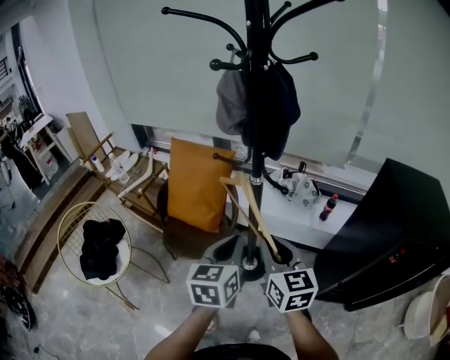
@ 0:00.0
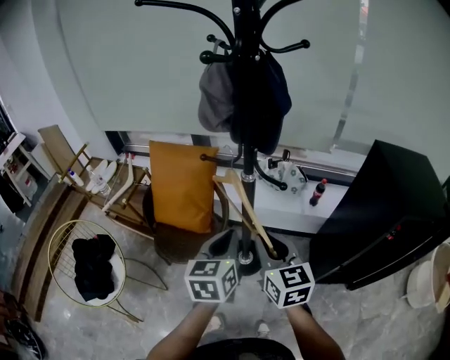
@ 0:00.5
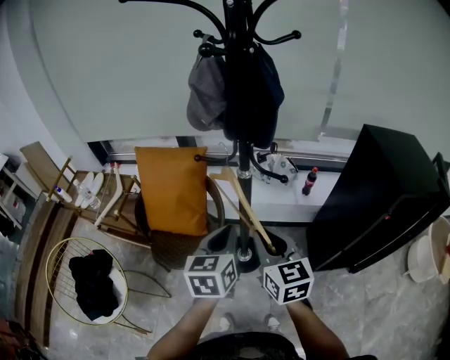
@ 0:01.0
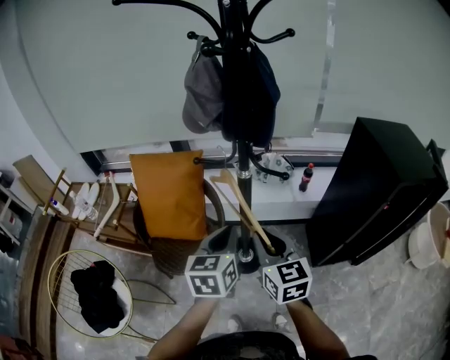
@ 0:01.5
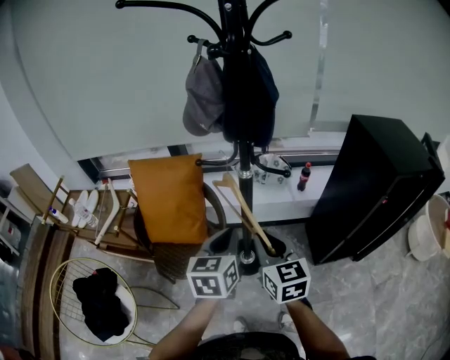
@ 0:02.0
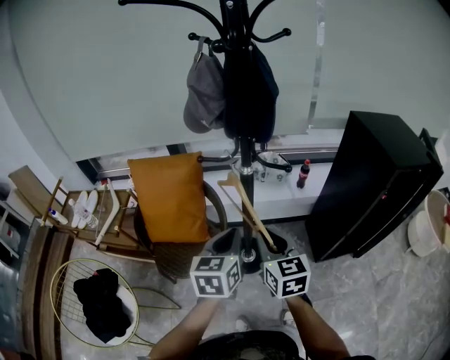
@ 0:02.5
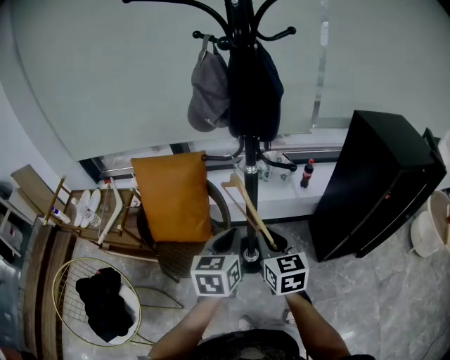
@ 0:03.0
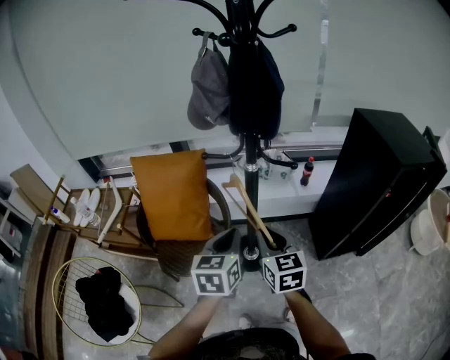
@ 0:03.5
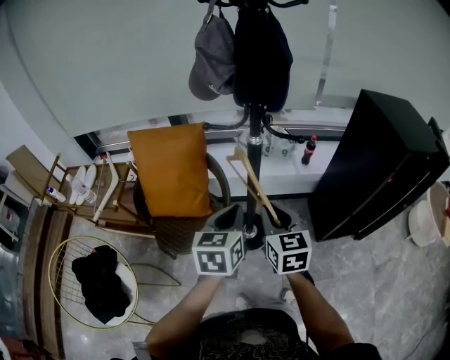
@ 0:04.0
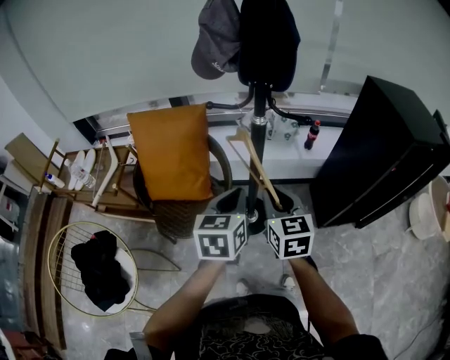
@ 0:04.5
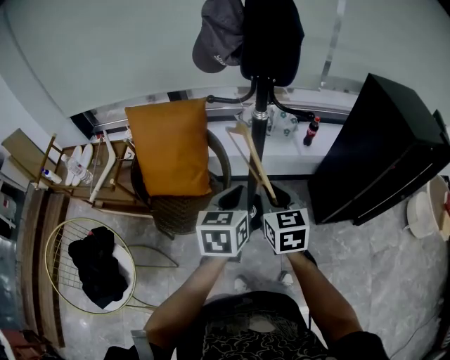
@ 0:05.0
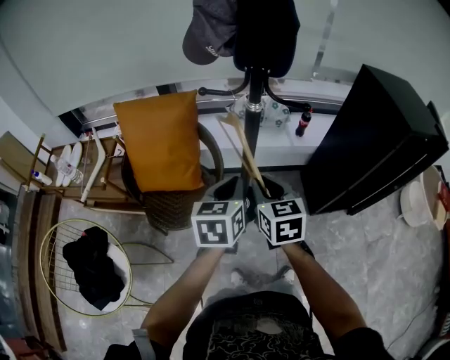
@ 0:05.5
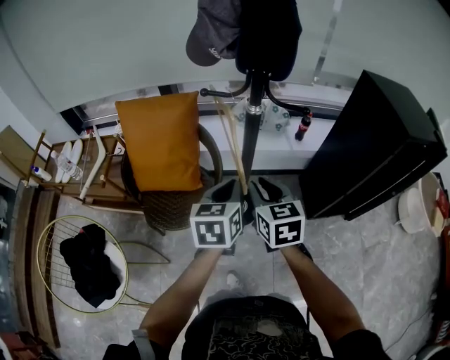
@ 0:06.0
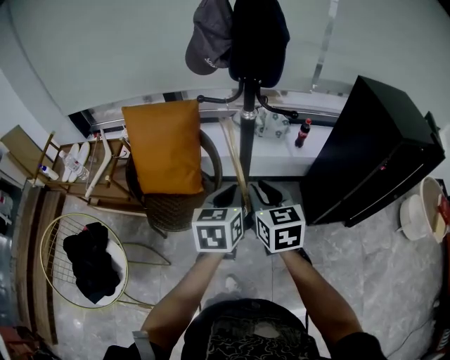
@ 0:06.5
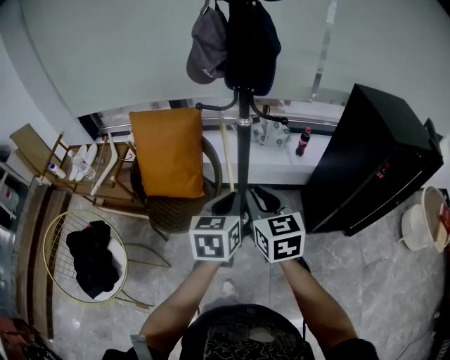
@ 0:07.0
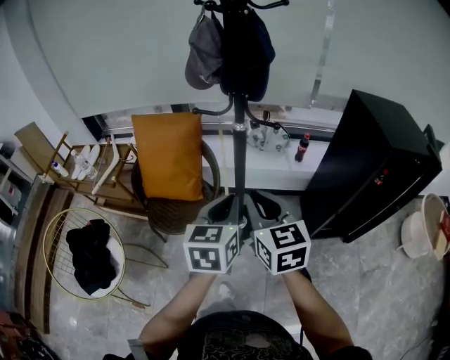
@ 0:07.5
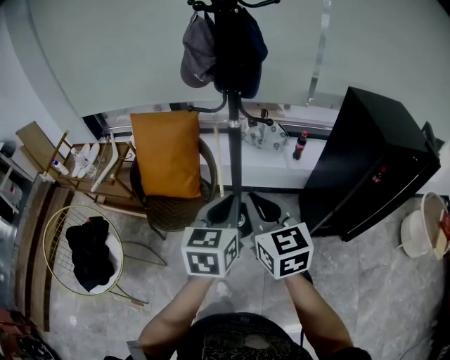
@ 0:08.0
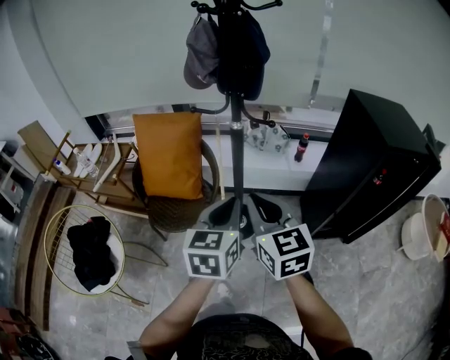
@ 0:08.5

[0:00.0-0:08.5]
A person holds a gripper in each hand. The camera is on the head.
0:00.0 to 0:02.0: The left gripper moves to the left and forward, about 10 cm. The right gripper is displaced to the left by about 10 cm.
0:02.0 to 0:04.0: The grippers move only a little.
0:04.0 to 0:06.5: The grippers make only small movements.
0:06.5 to 0:08.5: The right gripper goes approximately 15 cm upward and backward, while the left gripper moves backward, upward and to the right, approximately 15 cm.

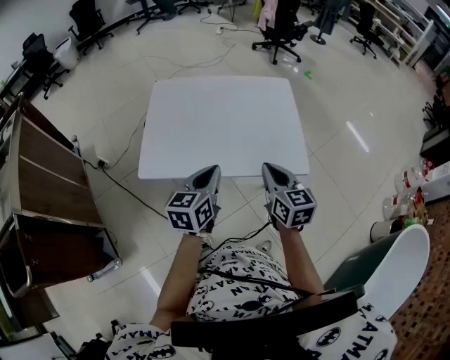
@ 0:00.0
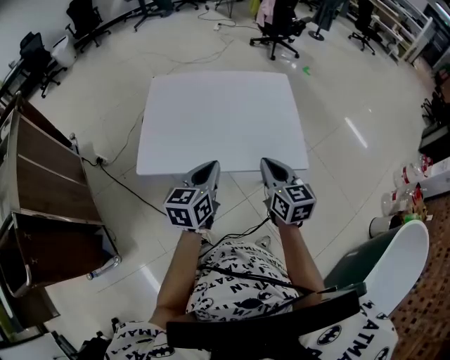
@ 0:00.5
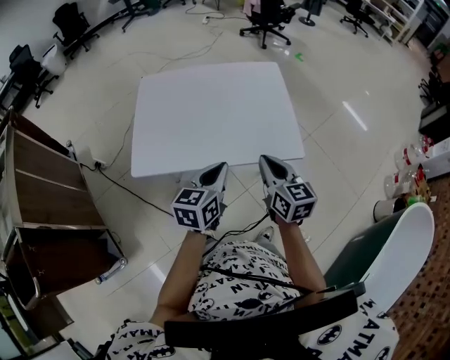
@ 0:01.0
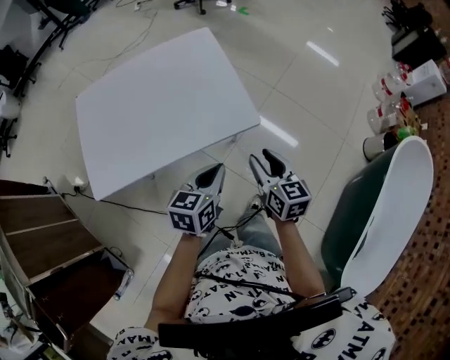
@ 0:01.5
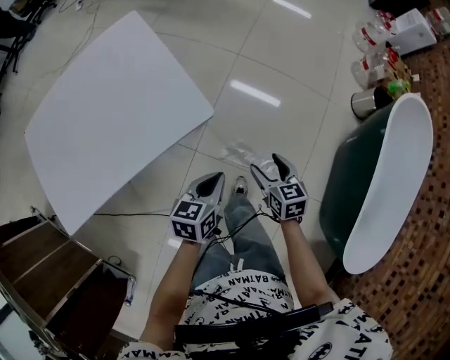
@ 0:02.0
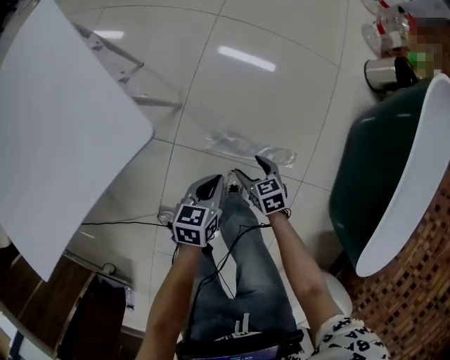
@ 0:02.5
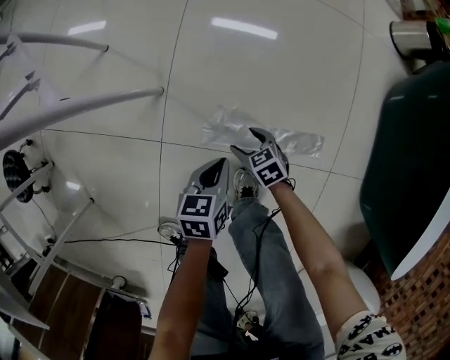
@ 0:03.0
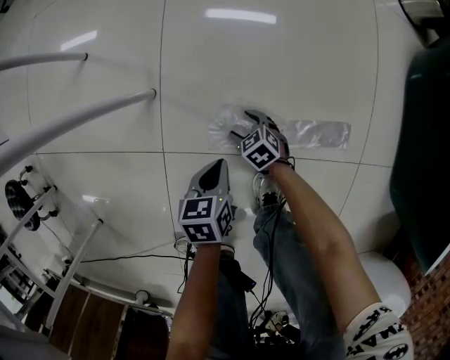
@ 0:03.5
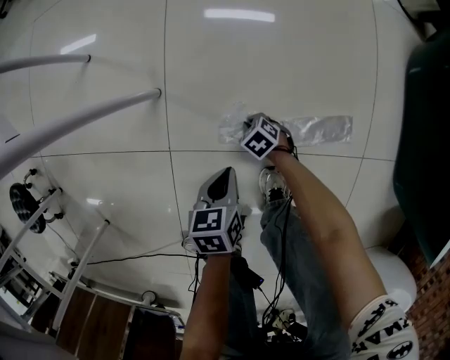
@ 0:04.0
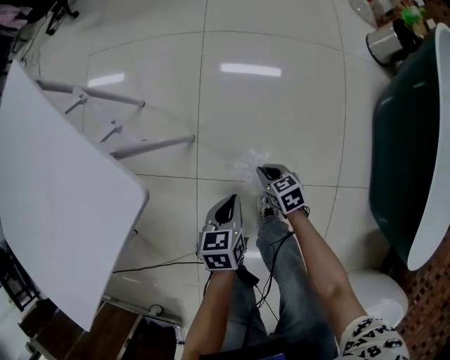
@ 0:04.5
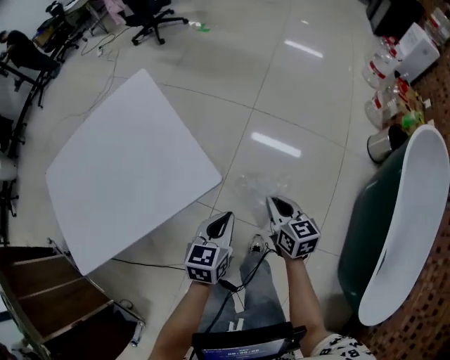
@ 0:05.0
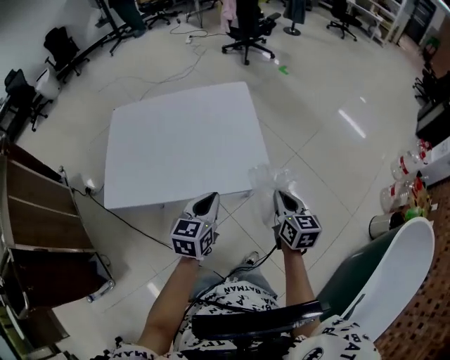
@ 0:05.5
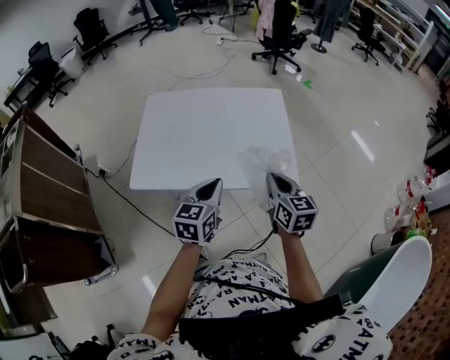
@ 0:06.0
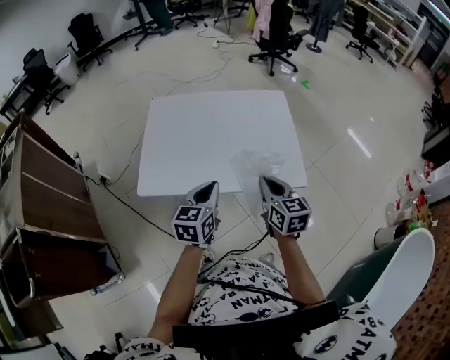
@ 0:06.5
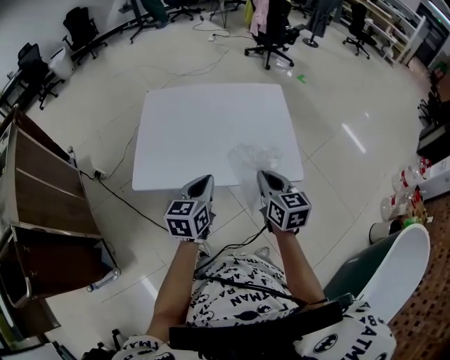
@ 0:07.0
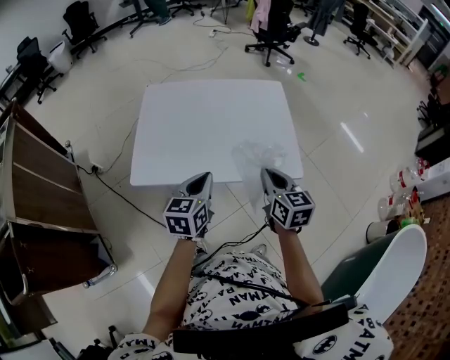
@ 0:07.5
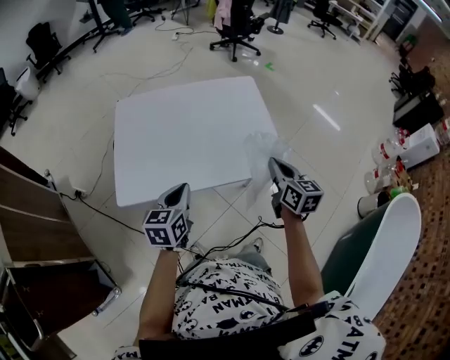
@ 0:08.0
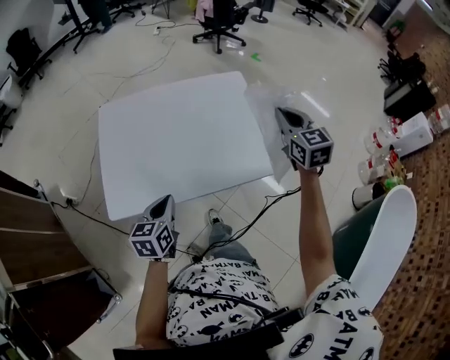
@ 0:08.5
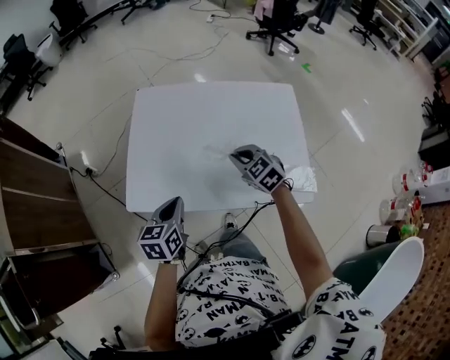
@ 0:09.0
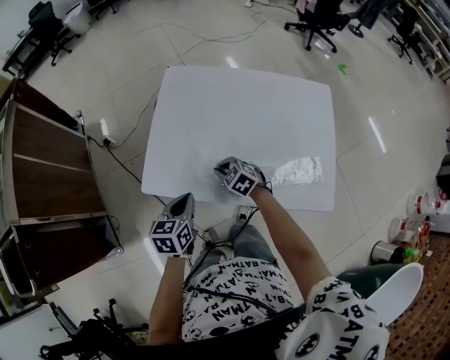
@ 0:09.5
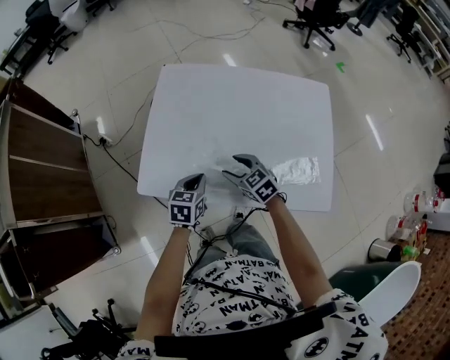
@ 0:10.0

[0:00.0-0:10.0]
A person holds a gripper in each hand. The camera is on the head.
0:00.0 to 0:02.0: The left gripper shifts by about 40 cm, and swivels roughly 40 degrees, while the right gripper changes place by approximately 40 cm, changes its angle by about 40 degrees, and opens up.
0:02.0 to 0:04.0: Both grippers travel together downward, approximately 60 cm. The right gripper points its fingers some 30 degrees further downward, and closes its fingers. Meanwhile the left gripper changes its angle by some 20 degrees.
0:04.0 to 0:06.0: Both grippers travel together upward, roughly 90 cm. The left gripper tilts its fingers roughly 30 degrees upward. Meanwhile the right gripper angles its fingers upward, by about 50 degrees.
0:06.0 to 0:08.0: The left gripper shifts about 10 cm to the left; the right gripper reaches about 5 cm to the left, then returns.
0:08.0 to 0:10.0: The left gripper travels downward by roughly 15 cm, and rotates some 20 degrees, while the right gripper shifts by about 35 cm, swivels approximately 60 degrees, and opens up.

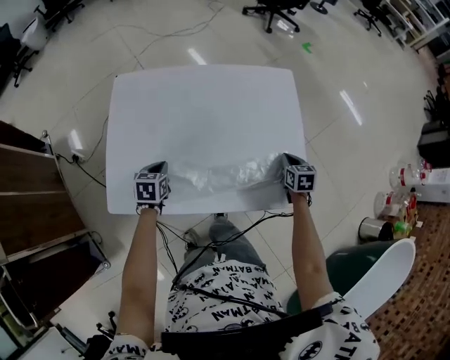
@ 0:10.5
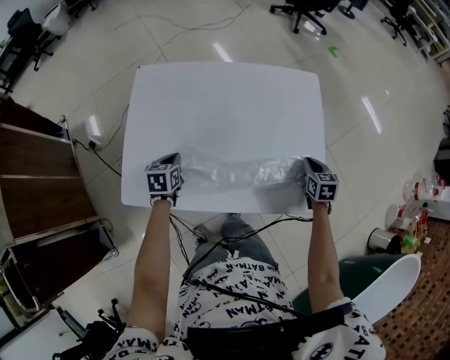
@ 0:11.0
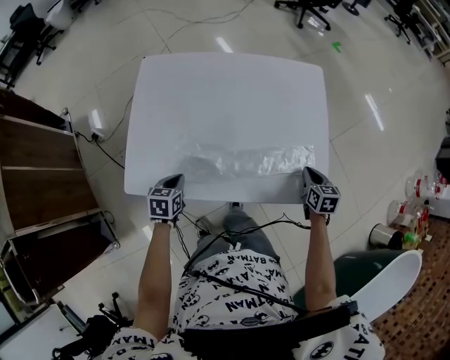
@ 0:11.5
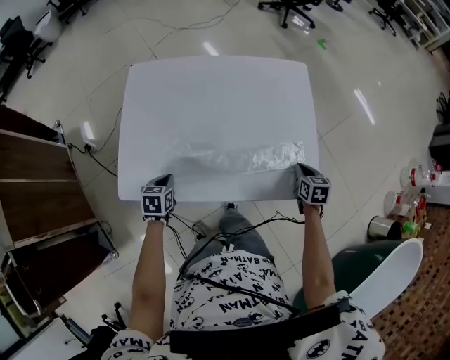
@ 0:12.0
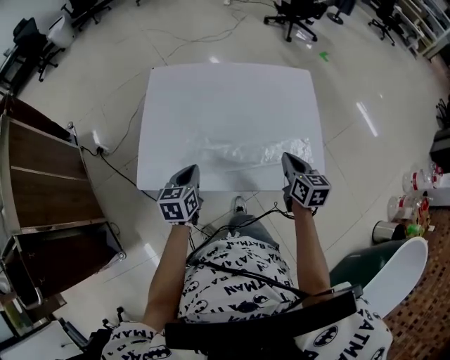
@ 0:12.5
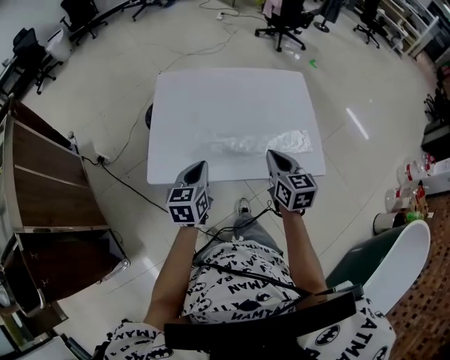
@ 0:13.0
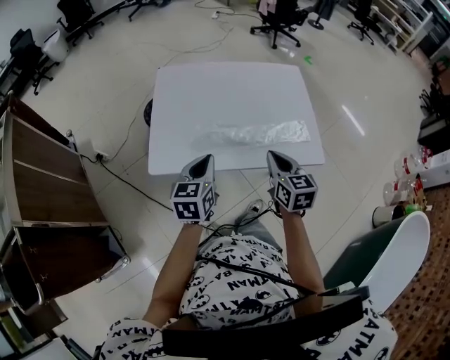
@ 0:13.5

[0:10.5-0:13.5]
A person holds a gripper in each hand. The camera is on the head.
0:10.5 to 0:12.0: Both grippers move backward, some 10 cm.
0:12.0 to 0:13.5: The left gripper travels upward by approximately 25 cm, and points its fingers roughly 30 degrees further upward, while the right gripper shifts about 35 cm to the left, upward and backward, and turns by roughly 30 degrees.

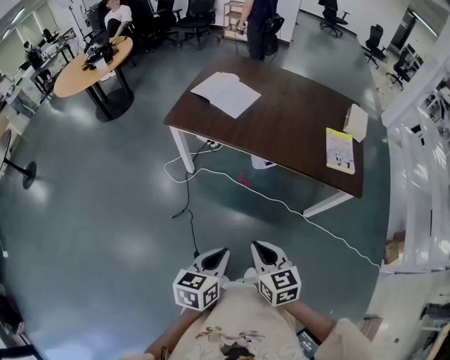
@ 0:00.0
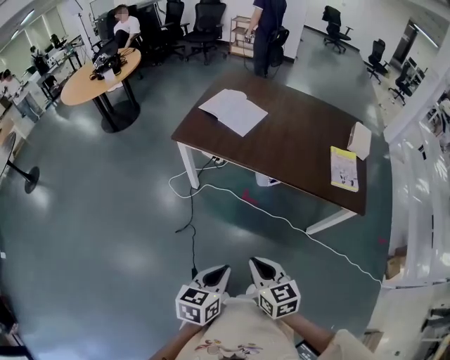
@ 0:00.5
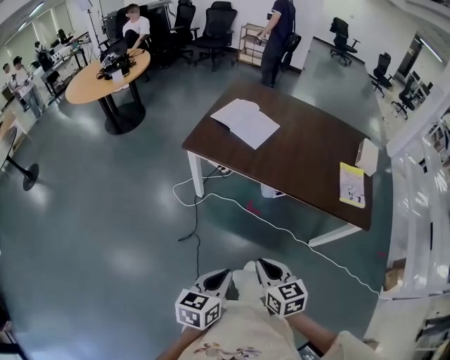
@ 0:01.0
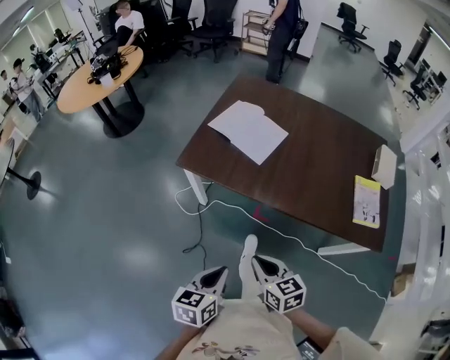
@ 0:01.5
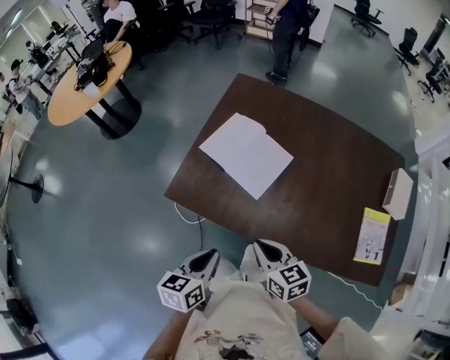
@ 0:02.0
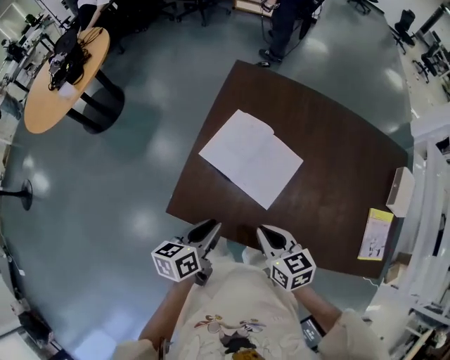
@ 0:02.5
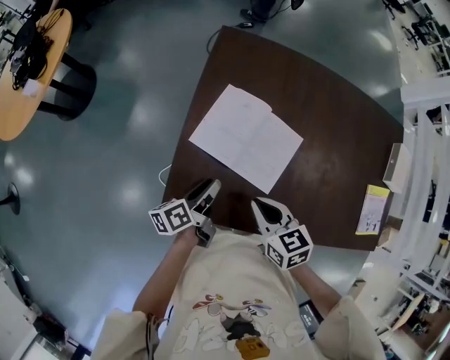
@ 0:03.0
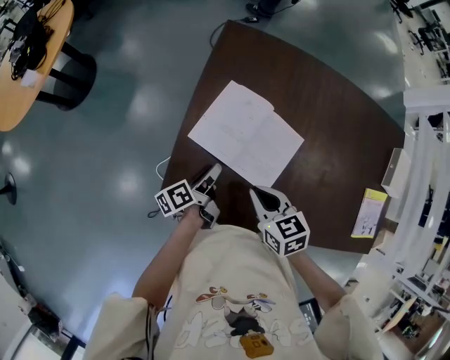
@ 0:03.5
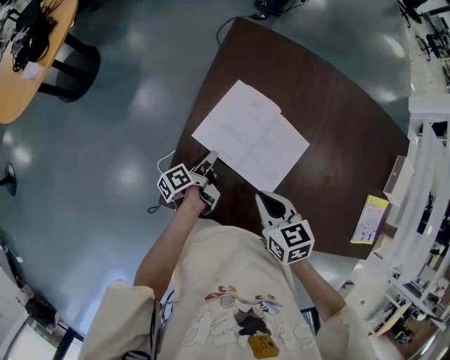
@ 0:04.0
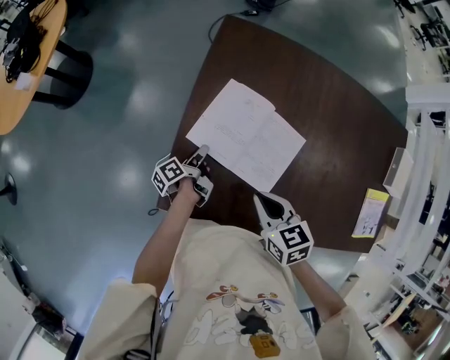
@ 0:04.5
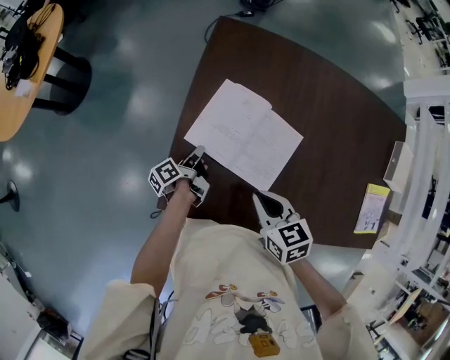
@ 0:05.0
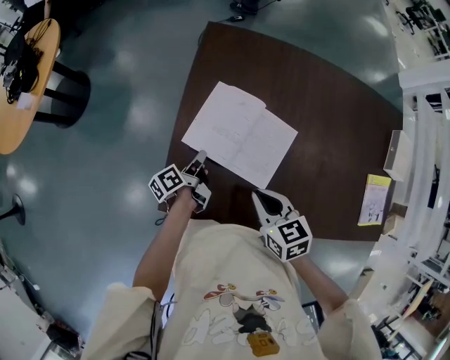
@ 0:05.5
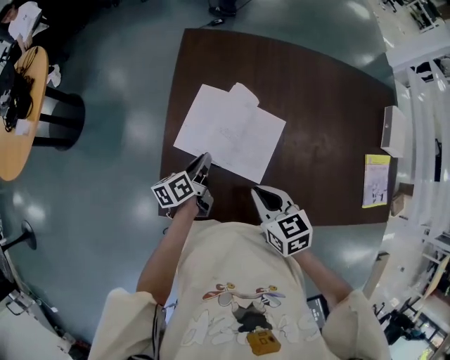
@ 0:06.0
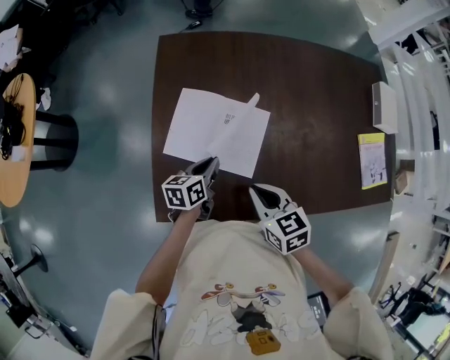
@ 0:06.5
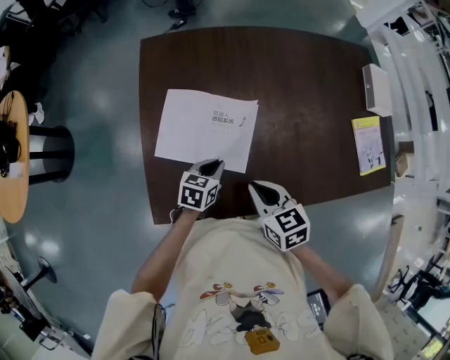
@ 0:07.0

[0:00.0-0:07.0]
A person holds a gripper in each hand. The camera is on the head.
0:00.0 to 0:02.0: The two grippers travel together, forward, about 50 cm.
0:02.0 to 0:03.5: The left gripper moves forward and downward, roughly 40 cm, rotates around the line of its fingers by about 50 degrees, counterclockwise from behind, and opens its fingers. Meanwhile the right gripper travels forward by roughly 25 cm.
0:03.5 to 0:05.0: The left gripper travels downward and forward by roughly 10 cm, and closes its fingers.
0:05.0 to 0:07.0: The left gripper changes place by about 25 cm, and rolls clockwise, seen from behind, by roughly 80 degrees; the right gripper moves roughly 10 cm.
